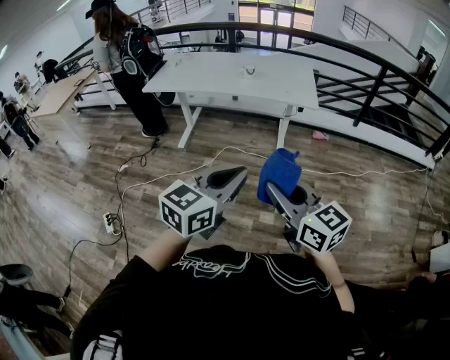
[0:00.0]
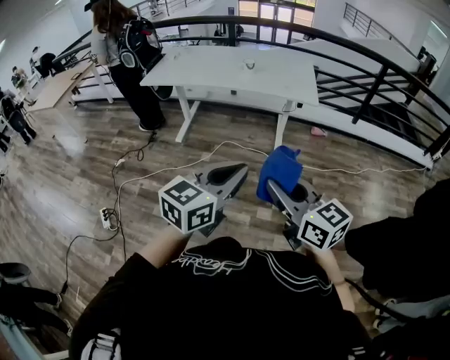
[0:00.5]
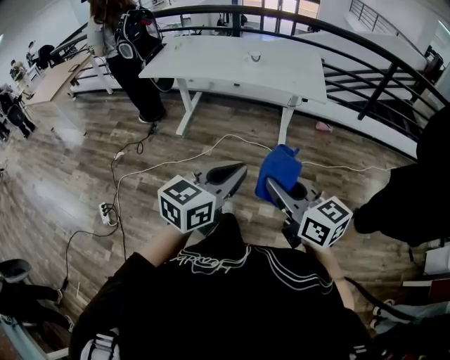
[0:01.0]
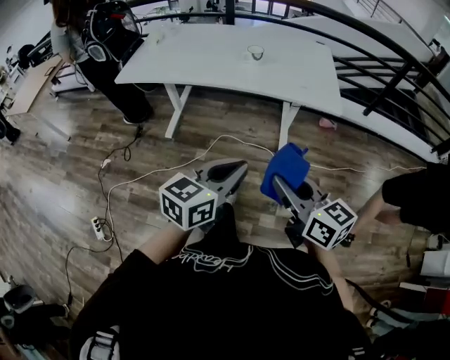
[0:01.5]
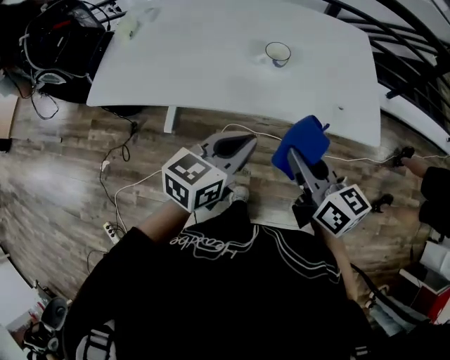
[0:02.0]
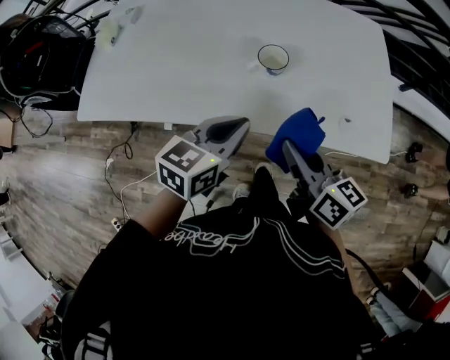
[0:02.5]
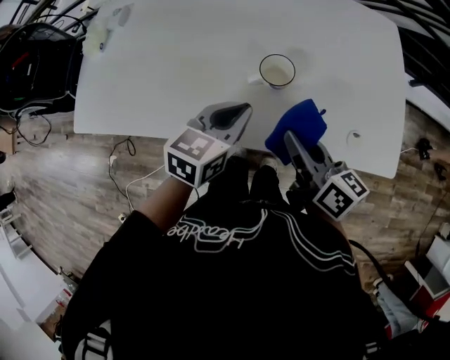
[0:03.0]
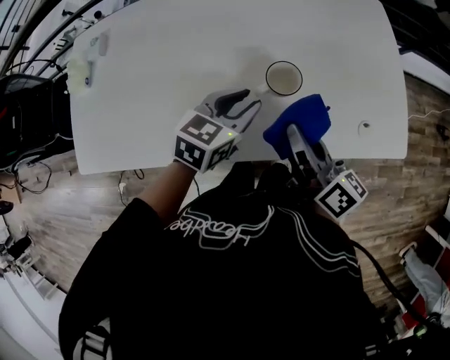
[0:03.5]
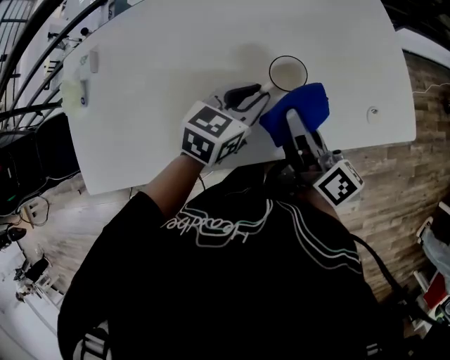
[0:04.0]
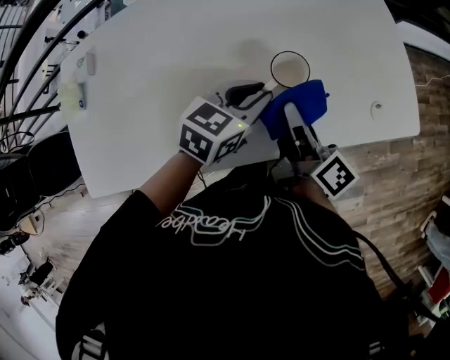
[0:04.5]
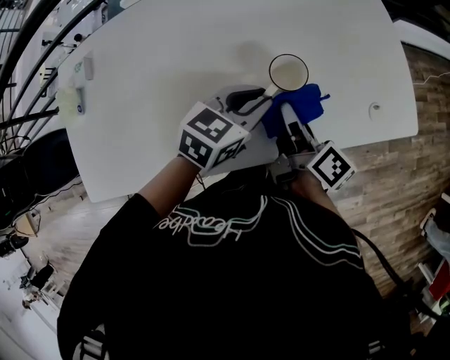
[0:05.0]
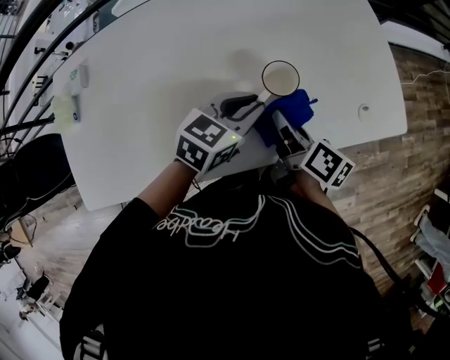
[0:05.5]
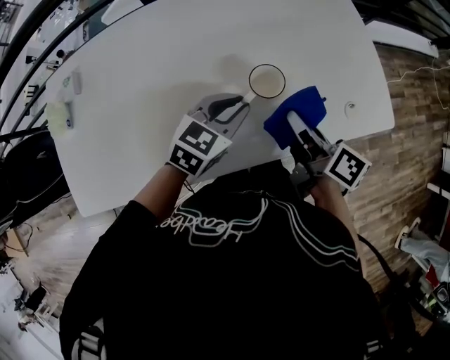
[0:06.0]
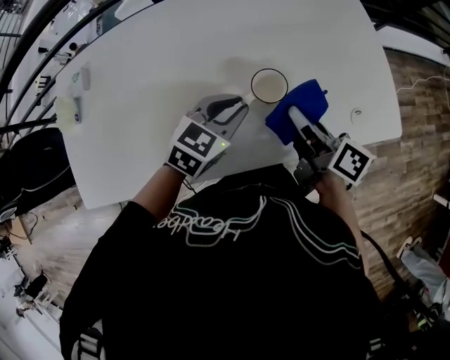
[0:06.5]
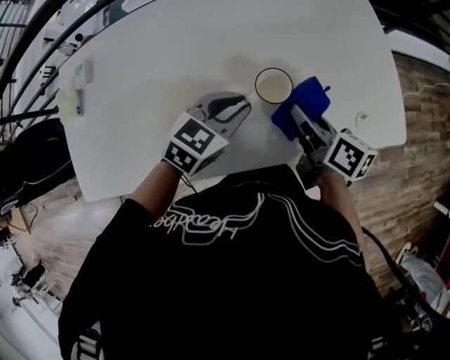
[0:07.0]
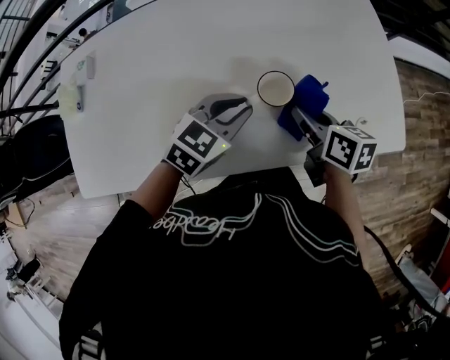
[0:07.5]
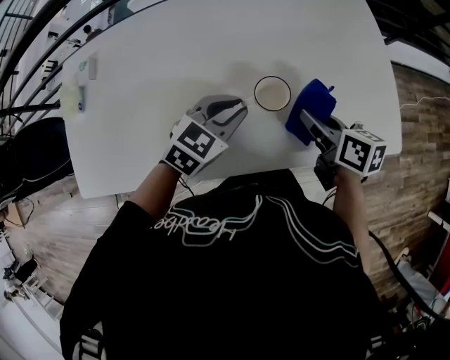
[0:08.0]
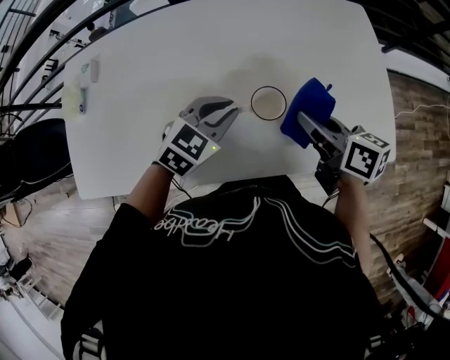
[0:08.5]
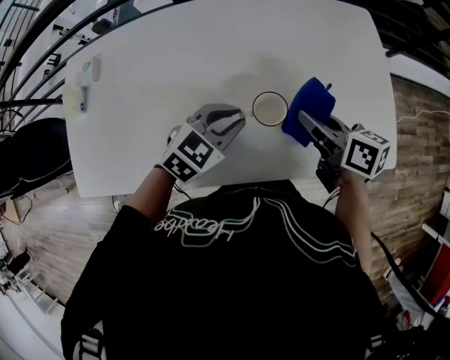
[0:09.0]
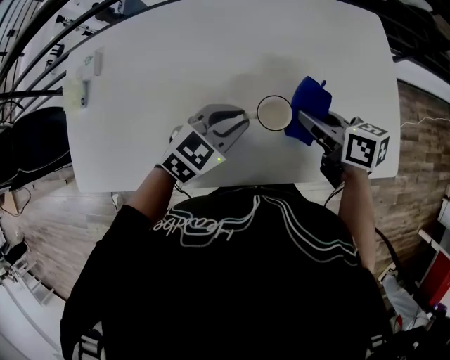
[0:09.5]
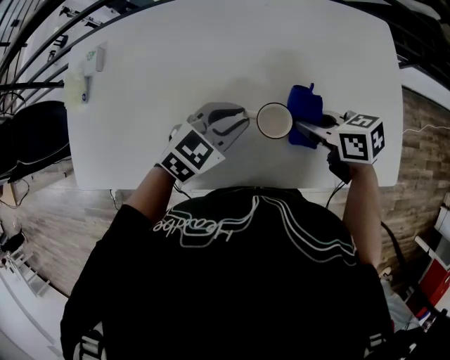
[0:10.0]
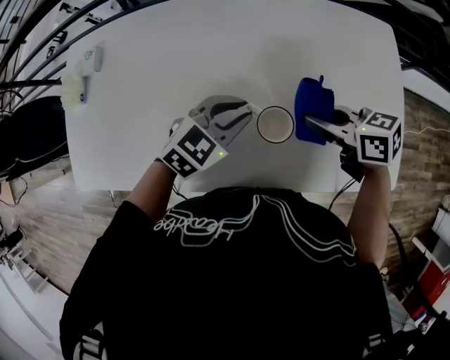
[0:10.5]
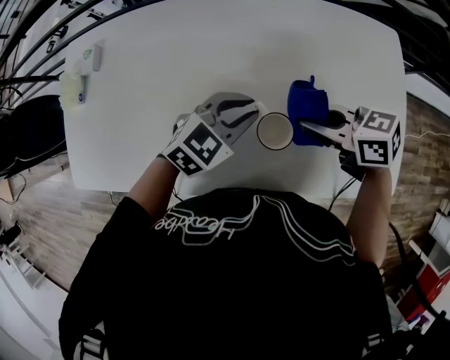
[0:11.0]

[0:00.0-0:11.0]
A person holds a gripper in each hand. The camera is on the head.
0:00.0 to 0:02.0: Both grippers are carried forward, approximately 70 cm. The right gripper changes its angle by approximately 20 degrees.
0:02.0 to 0:03.5: The grippers both shift forward and downward by some 25 cm. The right gripper rotates approximately 30 degrees. Meanwhile the left gripper opens up.
0:03.5 to 0:05.5: The right gripper shifts approximately 10 cm downward, and swivels approximately 20 degrees.
0:05.5 to 0:07.5: The right gripper ends up some 5 cm from where it was, and changes its angle by roughly 30 degrees.
0:07.5 to 0:09.0: The right gripper heads upward, covering approximately 5 cm.
0:09.0 to 0:11.0: The left gripper shifts by some 5 cm. Meanwhile the right gripper turns by about 40 degrees.

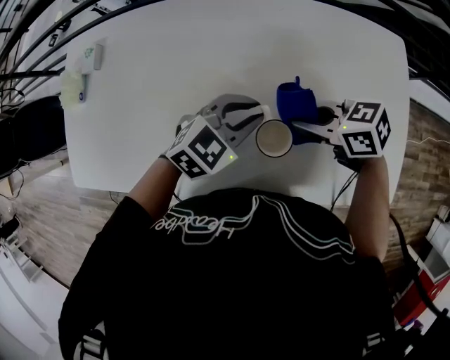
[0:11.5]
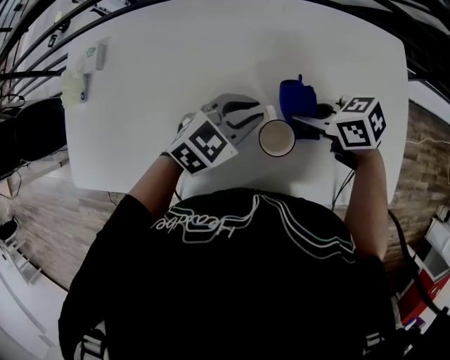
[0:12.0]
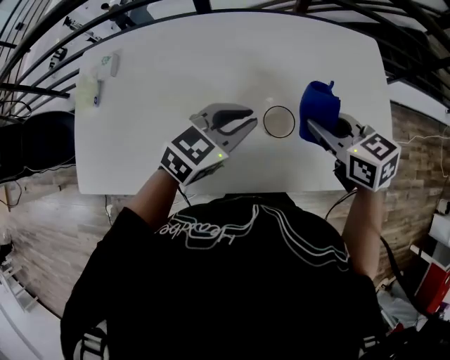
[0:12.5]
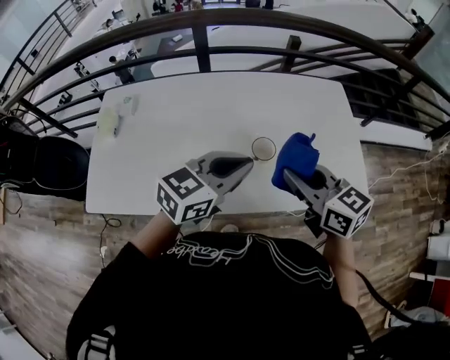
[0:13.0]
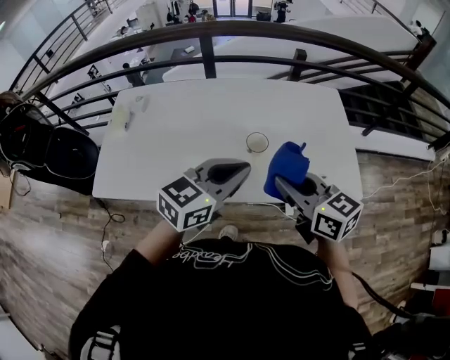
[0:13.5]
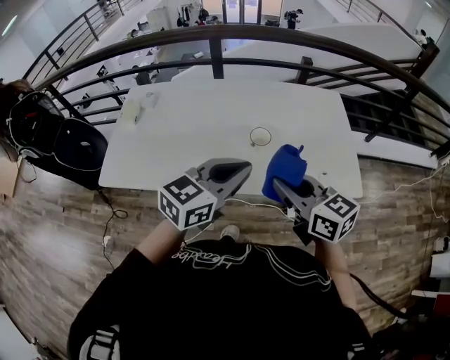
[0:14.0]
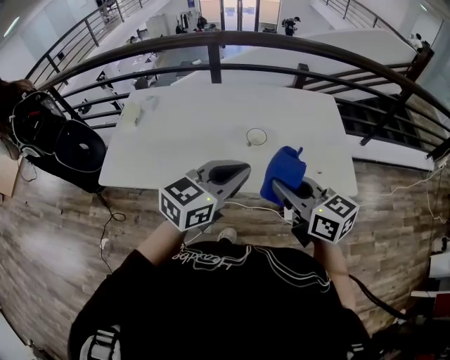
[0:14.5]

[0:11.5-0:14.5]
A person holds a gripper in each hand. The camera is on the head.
0:11.5 to 0:13.0: Both grippers move upward, some 20 cm. The left gripper swivels approximately 30 degrees, while the right gripper changes its angle by about 50 degrees.
0:13.0 to 0:14.5: The left gripper moves backward and upward, some 15 cm; the right gripper goes some 15 cm backward.

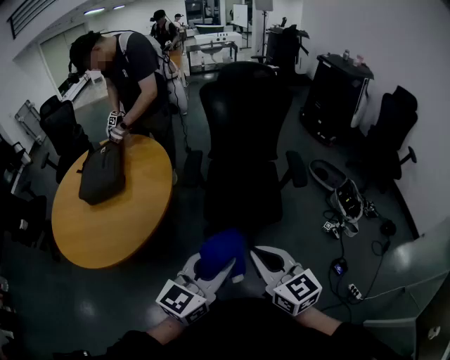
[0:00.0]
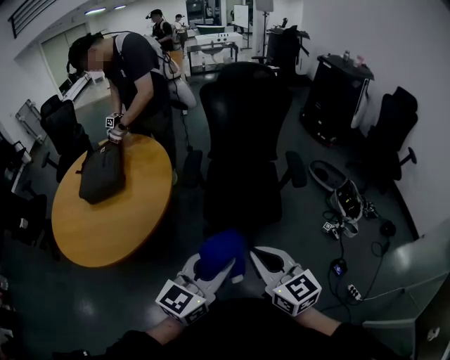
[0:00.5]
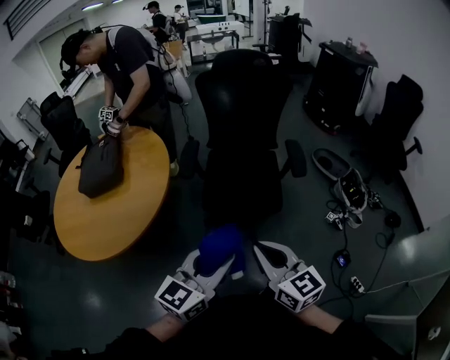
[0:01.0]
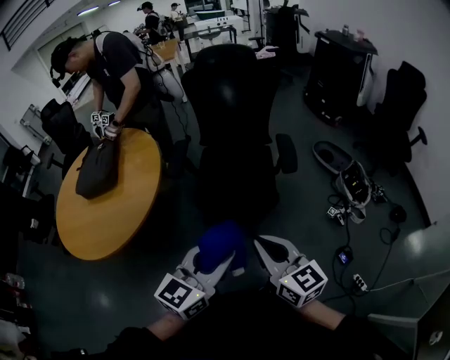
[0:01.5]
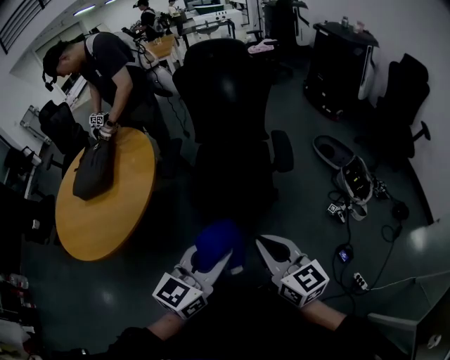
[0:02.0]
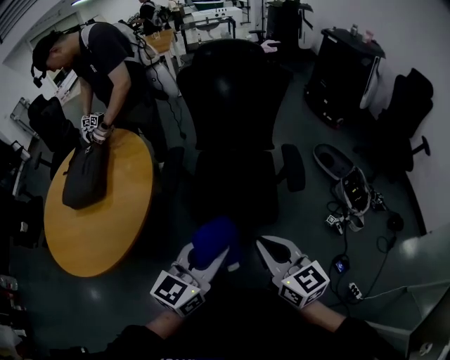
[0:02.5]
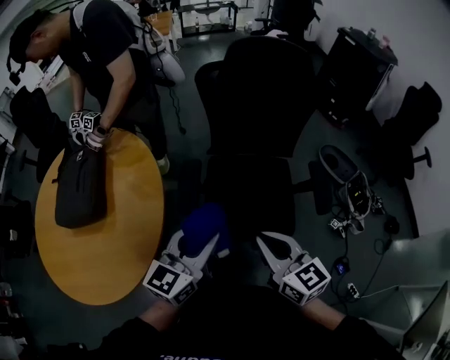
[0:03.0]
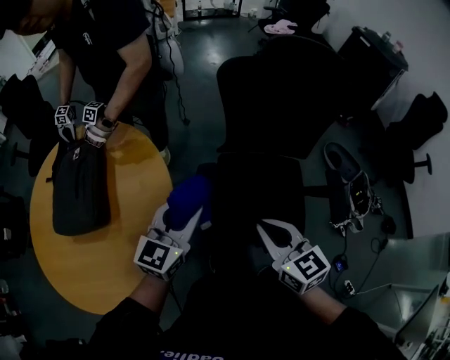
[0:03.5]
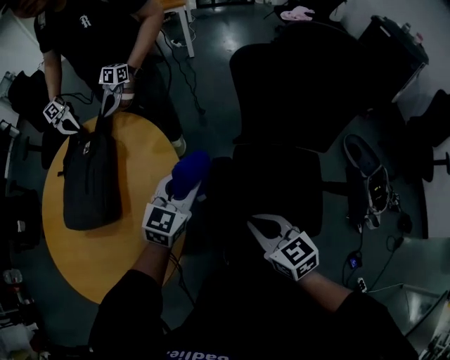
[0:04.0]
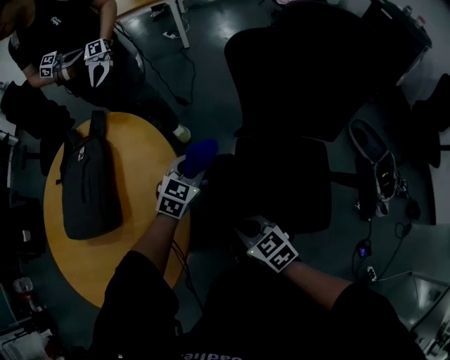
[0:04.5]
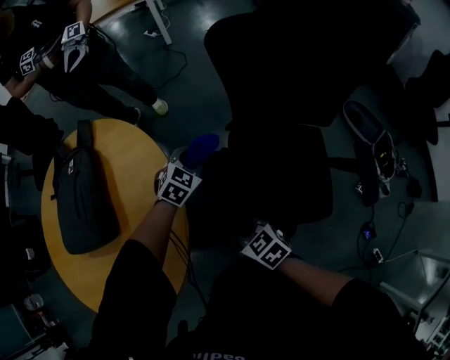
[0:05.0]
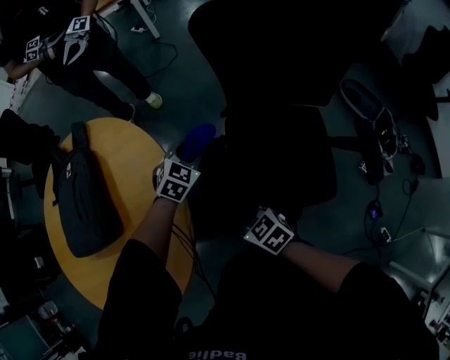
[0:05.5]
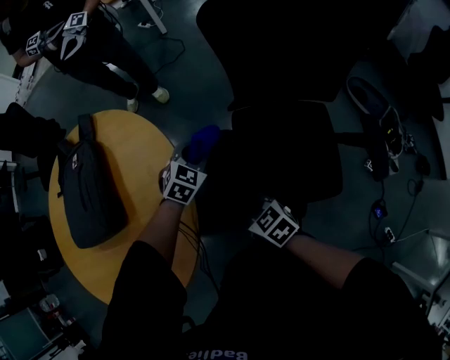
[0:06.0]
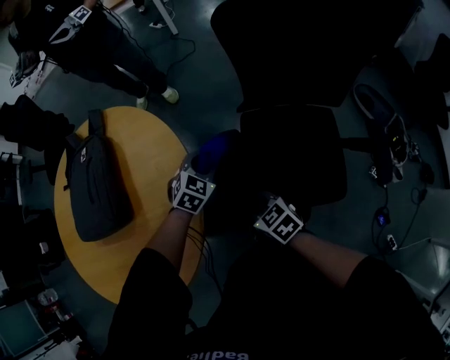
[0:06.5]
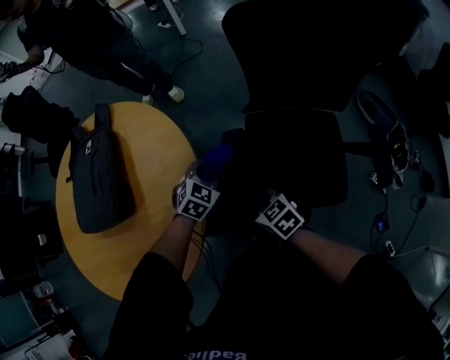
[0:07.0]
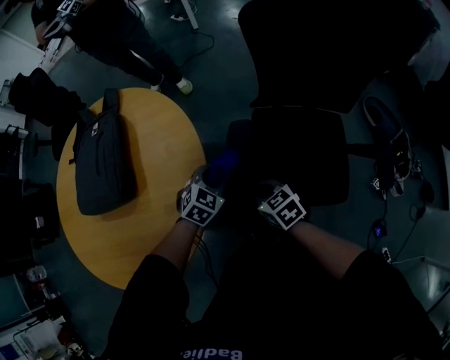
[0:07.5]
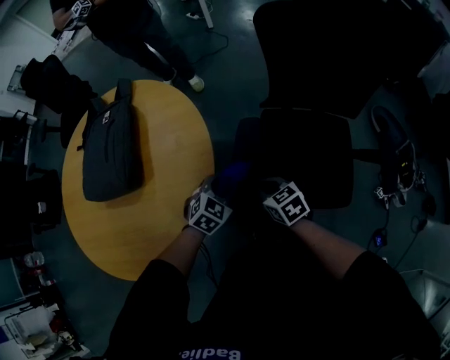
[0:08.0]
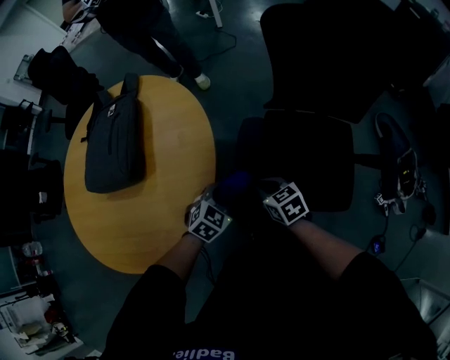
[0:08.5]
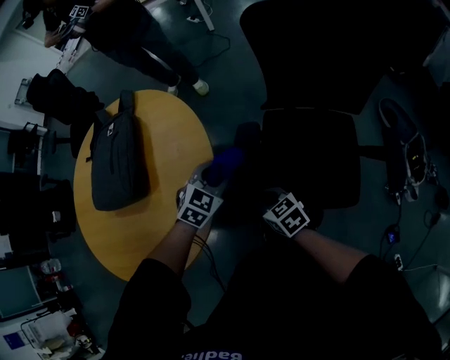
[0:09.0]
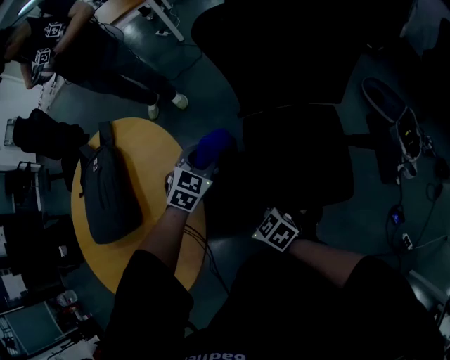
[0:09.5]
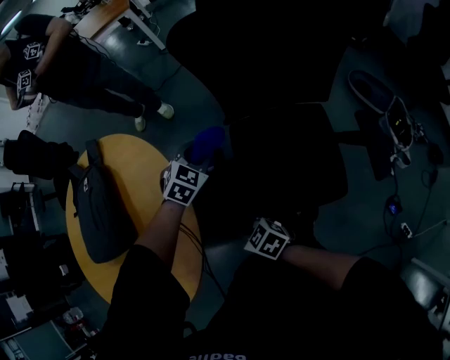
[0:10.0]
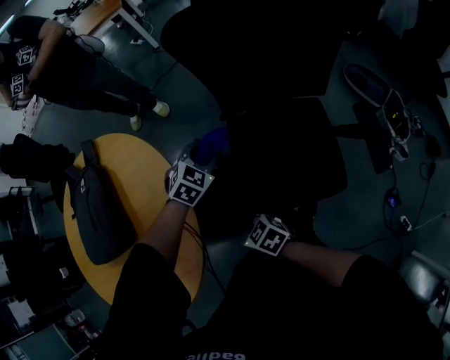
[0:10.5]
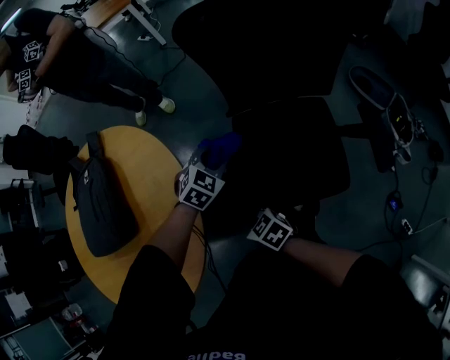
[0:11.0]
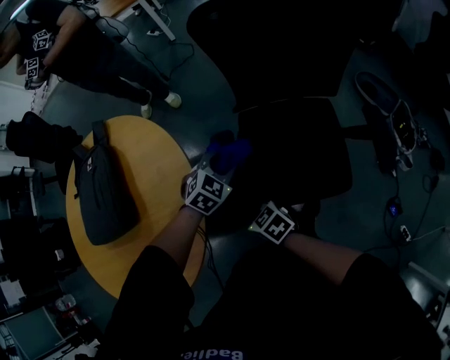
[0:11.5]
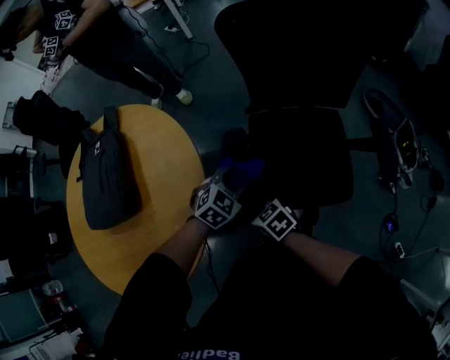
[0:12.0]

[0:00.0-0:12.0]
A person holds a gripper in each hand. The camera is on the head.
0:00.0 to 0:02.0: The two grippers go about 15 cm to the right.
0:02.0 to 0:04.0: Both grippers are carried forward and to the left, roughly 50 cm. The left gripper changes its angle by approximately 20 degrees. The right gripper turns by approximately 30 degrees.
0:04.0 to 0:06.0: The left gripper travels downward by some 15 cm, and swivels approximately 30 degrees; the right gripper is displaced downward and to the left by some 15 cm.
0:06.0 to 0:08.0: The left gripper shifts approximately 15 cm backward.
0:08.0 to 0:10.0: The left gripper heads forward and to the right, covering roughly 20 cm.
0:10.0 to 0:12.0: The left gripper heads backward, covering about 15 cm.

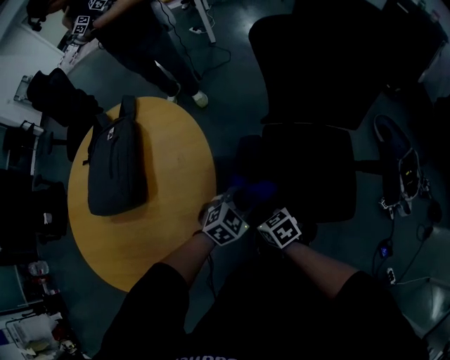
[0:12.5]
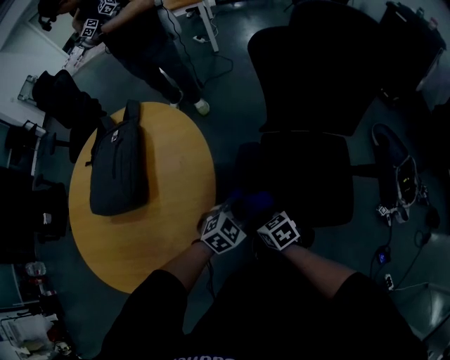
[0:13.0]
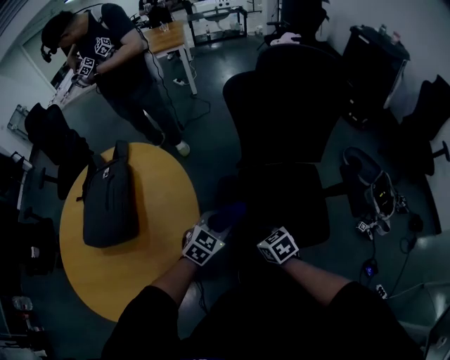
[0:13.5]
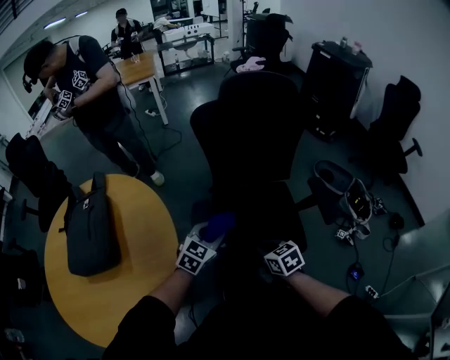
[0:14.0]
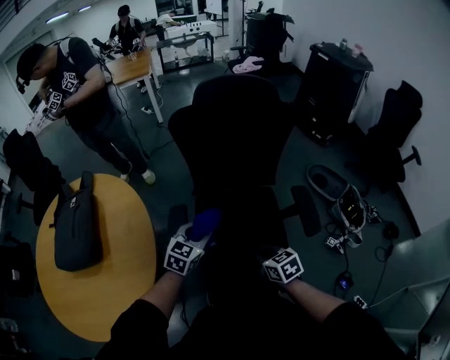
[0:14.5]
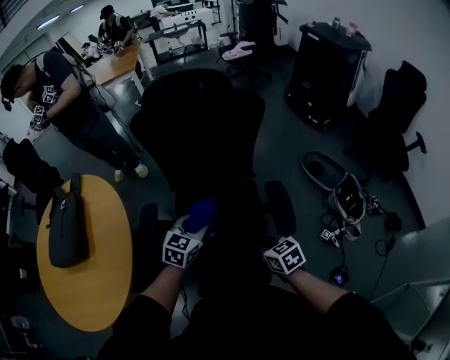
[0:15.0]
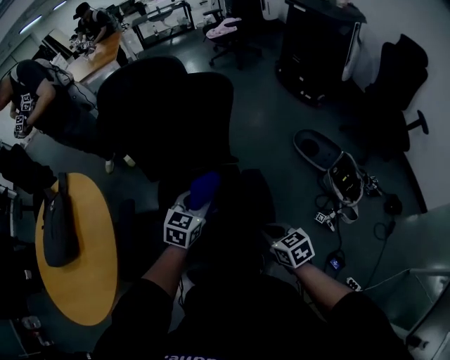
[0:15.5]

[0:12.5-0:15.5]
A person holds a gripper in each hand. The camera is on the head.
0:12.5 to 0:14.0: The left gripper heads upward, covering approximately 10 cm; the right gripper travels to the right and upward by approximately 20 cm, and turns by roughly 20 degrees.
0:14.0 to 0:15.5: The grippers both shift to the right by roughly 35 cm.
